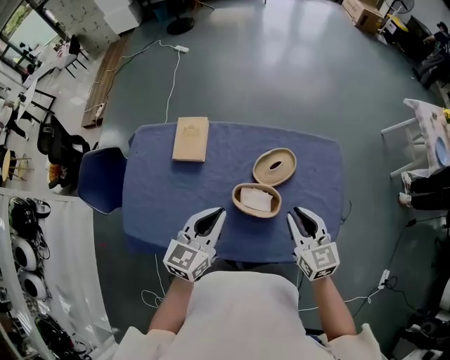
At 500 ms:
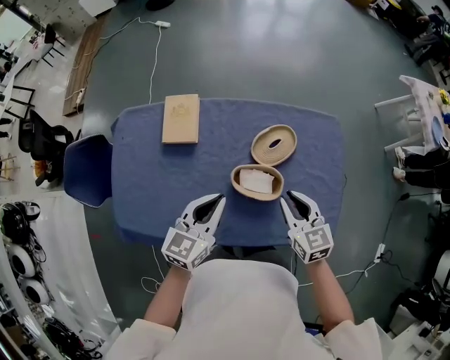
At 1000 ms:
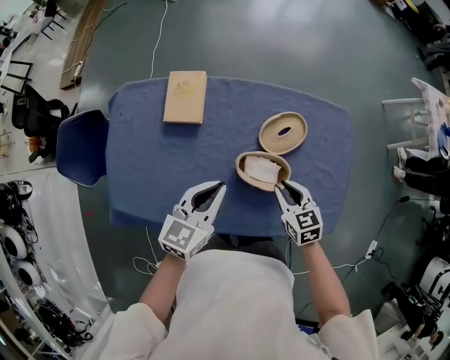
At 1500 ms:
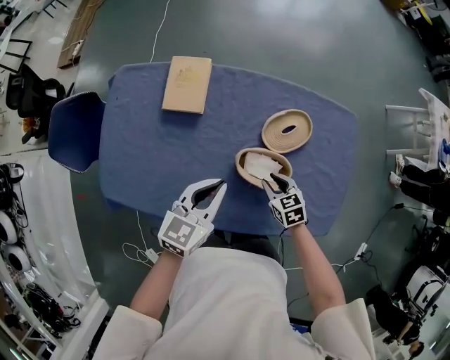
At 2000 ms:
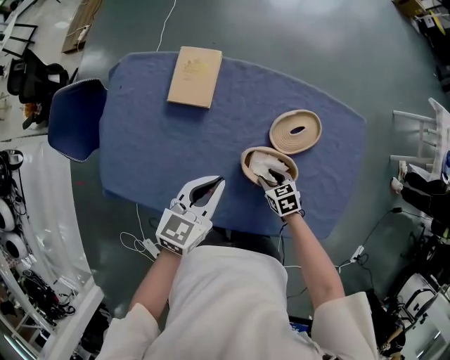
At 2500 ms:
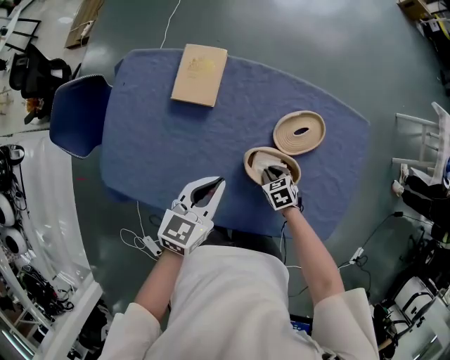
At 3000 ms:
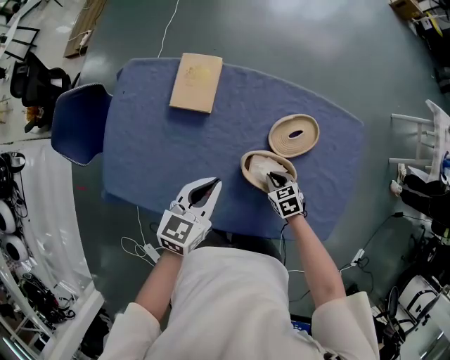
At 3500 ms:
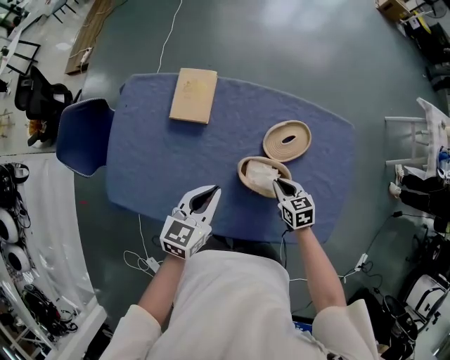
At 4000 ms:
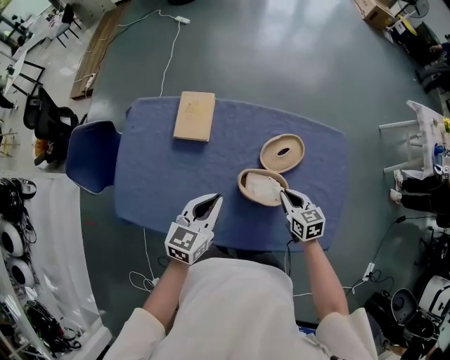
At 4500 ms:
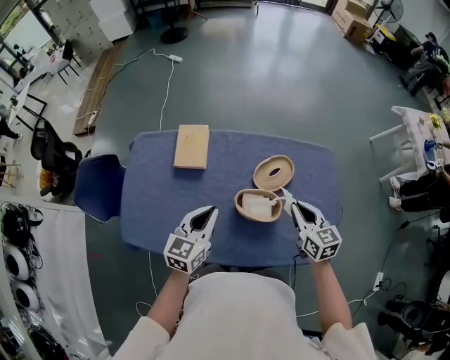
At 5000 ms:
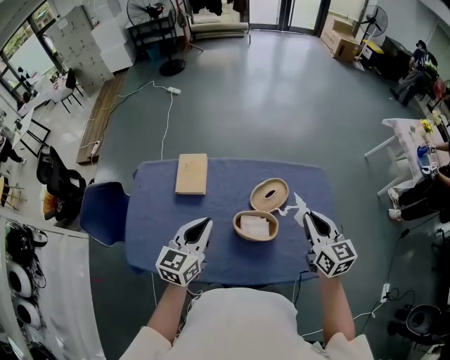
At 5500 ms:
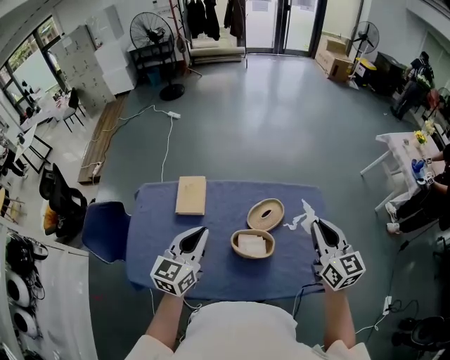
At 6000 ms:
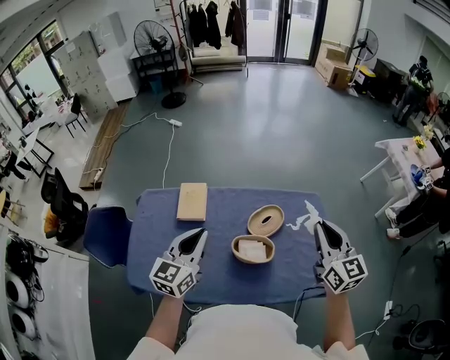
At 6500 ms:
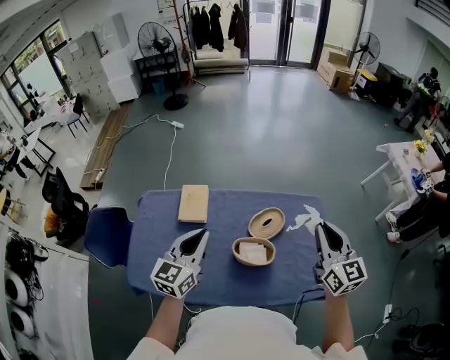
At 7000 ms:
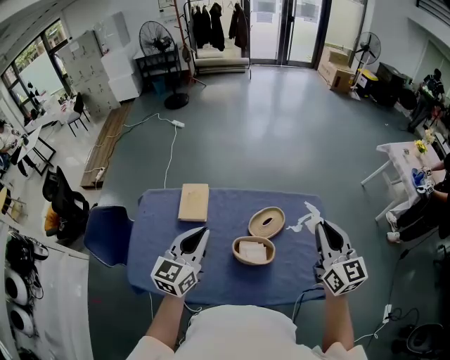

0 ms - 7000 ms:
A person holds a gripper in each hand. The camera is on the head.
0 ms - 2000 ms: The right gripper goes roughly 35 cm downward, and tips its fingers downward by approximately 40 degrees; the left gripper goes approximately 15 cm downward and to the left.
2000 ms - 3500 ms: The right gripper goes approximately 10 cm upward, and closes its fingers.
3500 ms - 5000 ms: The left gripper is displaced upward by approximately 15 cm; the right gripper moves upward, roughly 30 cm, and angles its fingers upward, by some 30 degrees.
5000 ms - 7000 ms: The right gripper heads upward, covering roughly 15 cm, while the left gripper goes some 10 cm upward.

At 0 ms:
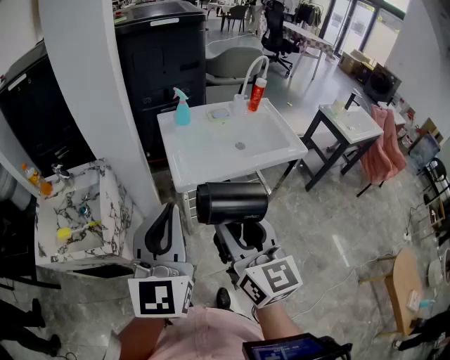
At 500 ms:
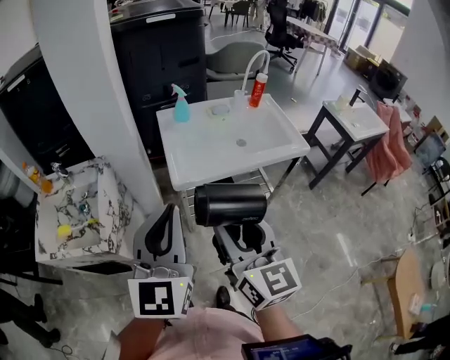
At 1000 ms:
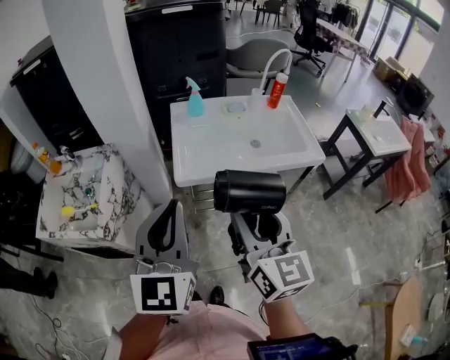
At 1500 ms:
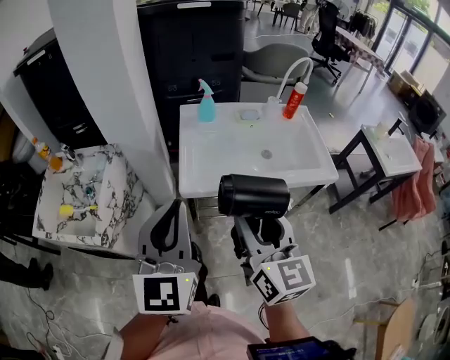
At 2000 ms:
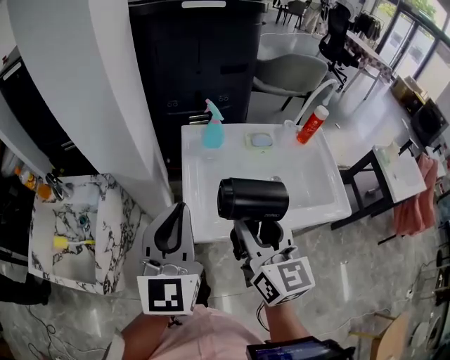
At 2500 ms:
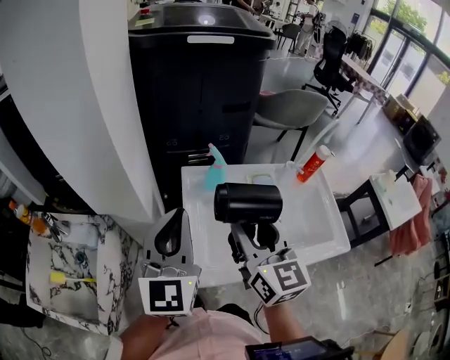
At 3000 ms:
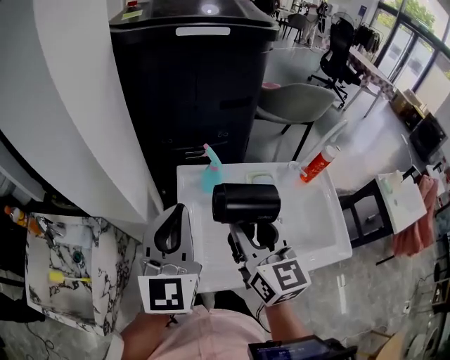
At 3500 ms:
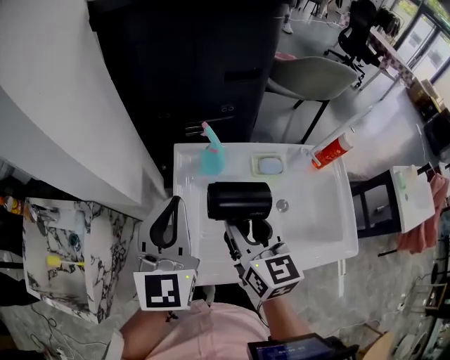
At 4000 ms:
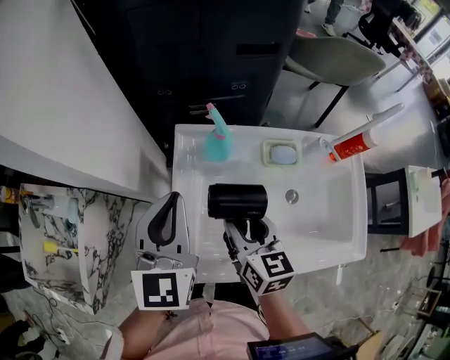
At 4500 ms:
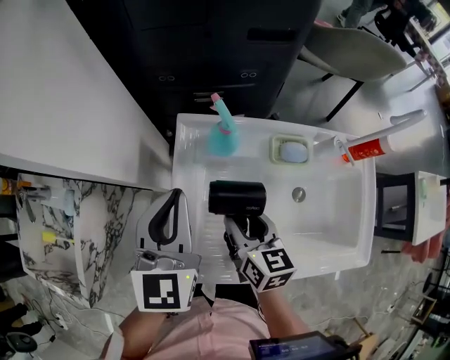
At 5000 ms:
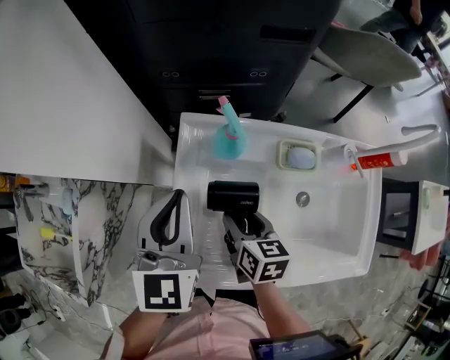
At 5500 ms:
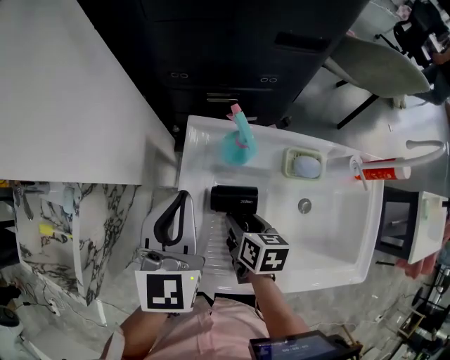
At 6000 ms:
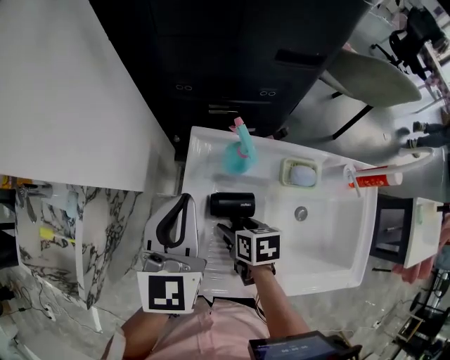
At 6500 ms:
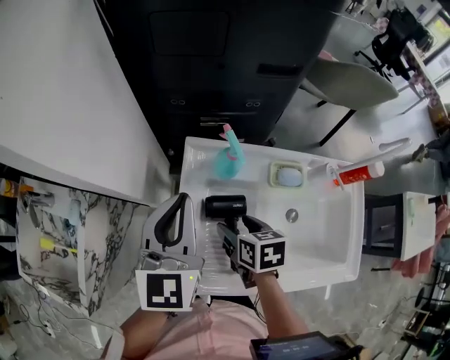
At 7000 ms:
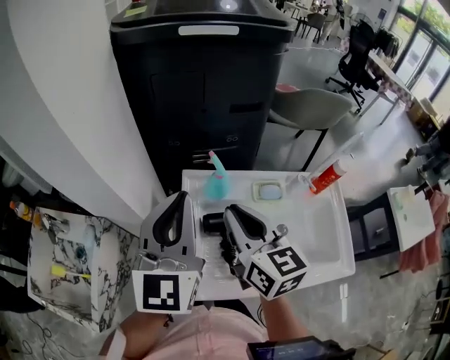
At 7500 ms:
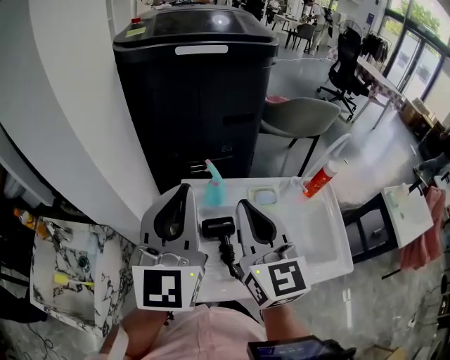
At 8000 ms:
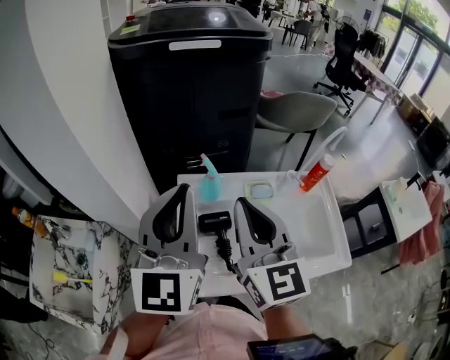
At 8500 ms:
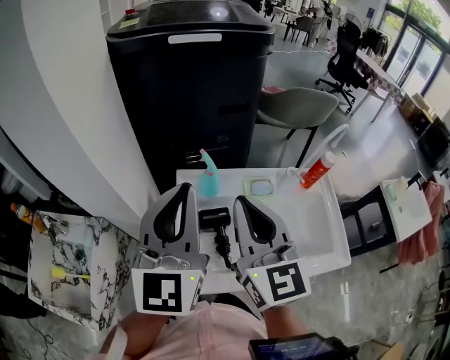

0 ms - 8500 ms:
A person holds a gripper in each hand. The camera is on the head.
0 ms - 2000 ms: The two grippers go roughly 25 cm forward.
2000 ms - 4000 ms: The two grippers go approximately 25 cm forward and downward. The right gripper swivels about 20 degrees.
4000 ms - 6500 ms: The right gripper goes about 5 cm downward, rotates about 30 degrees, and opens up.
6500 ms - 8500 ms: The right gripper moves upward, approximately 35 cm, points its fingers about 50 degrees further upward, and closes. Meanwhile the left gripper moves upward and backward, about 20 cm, and turns by approximately 20 degrees.

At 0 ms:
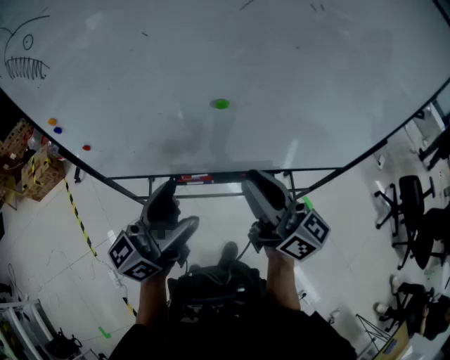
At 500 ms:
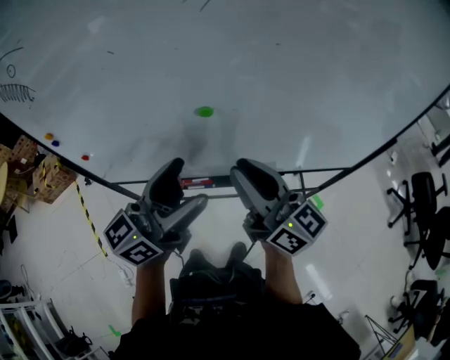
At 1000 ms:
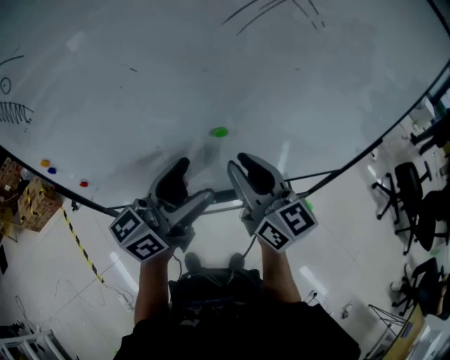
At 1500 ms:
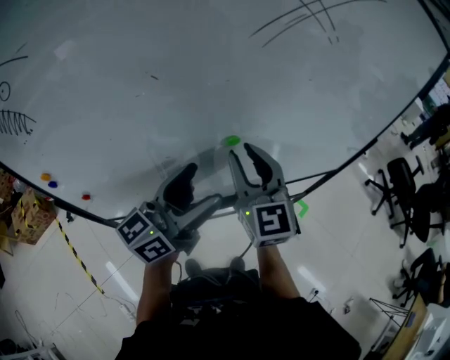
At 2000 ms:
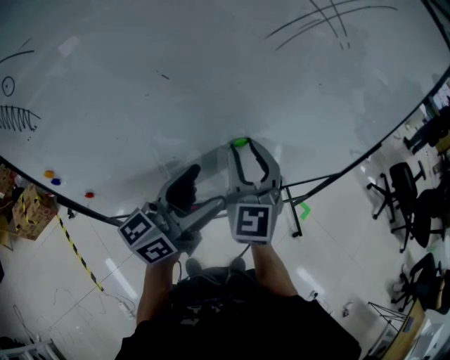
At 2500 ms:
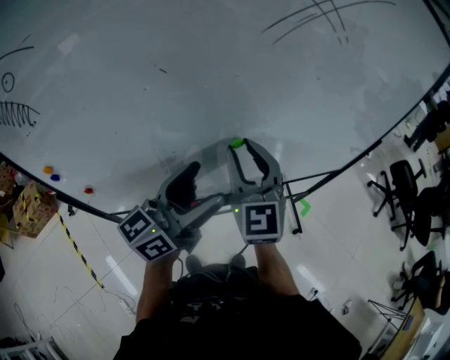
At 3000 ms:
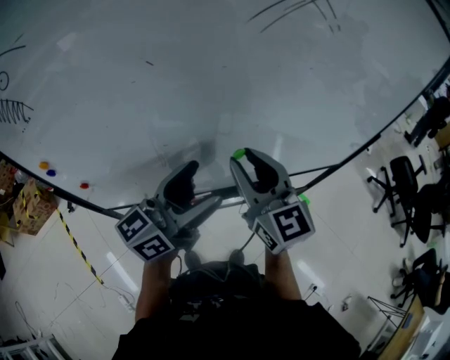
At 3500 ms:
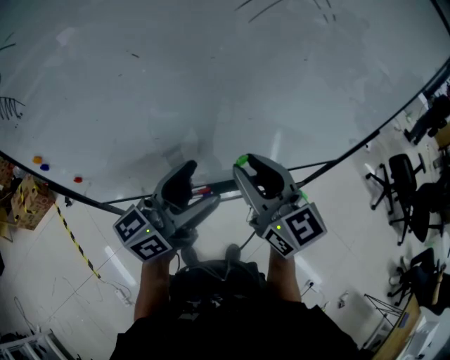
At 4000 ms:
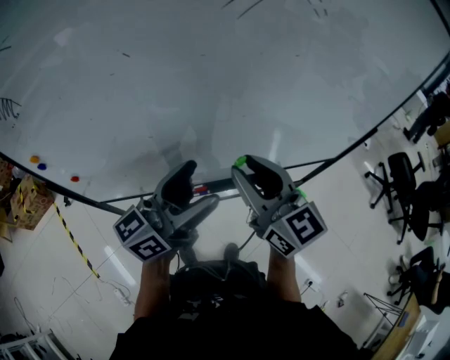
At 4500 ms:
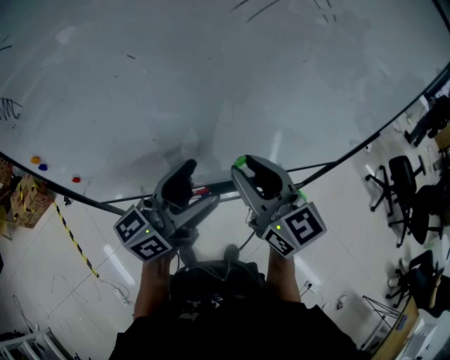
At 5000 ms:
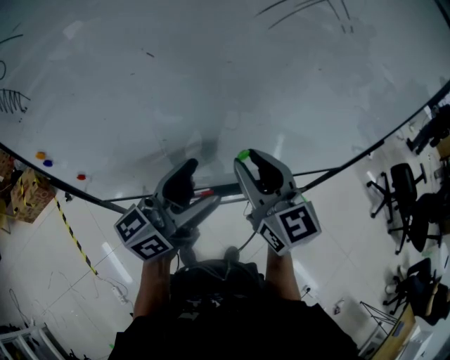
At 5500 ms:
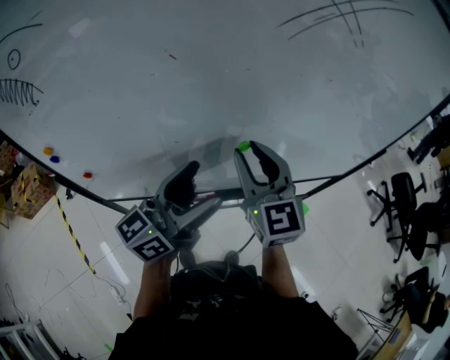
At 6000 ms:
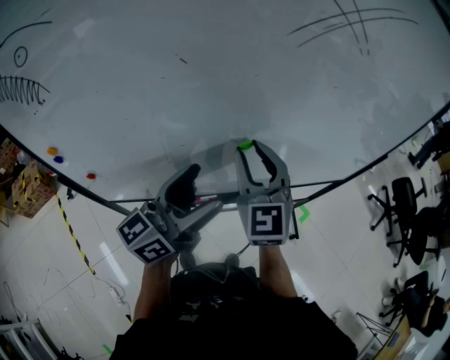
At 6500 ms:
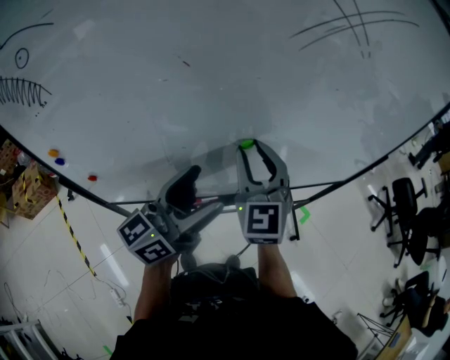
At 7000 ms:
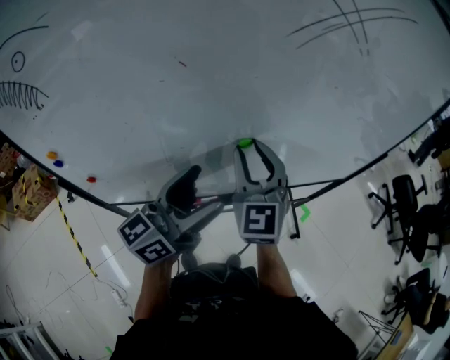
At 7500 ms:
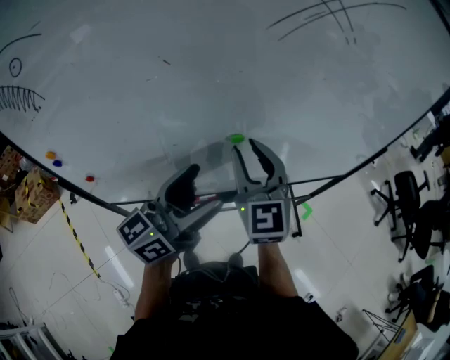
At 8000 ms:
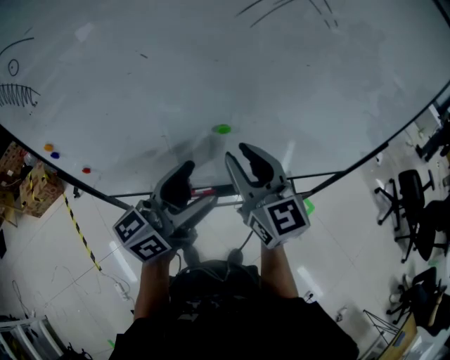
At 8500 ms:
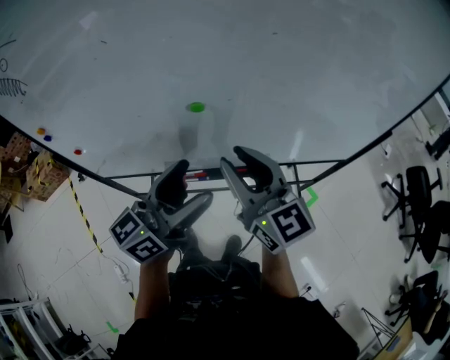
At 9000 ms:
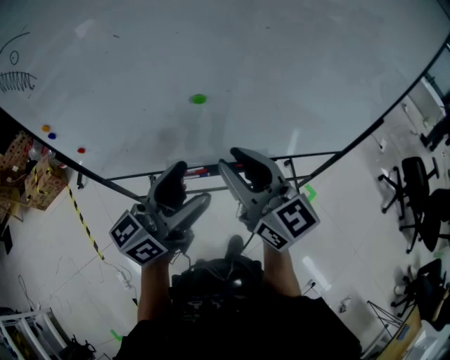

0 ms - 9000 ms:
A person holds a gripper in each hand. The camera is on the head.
0 ms - 2000 ms: The left gripper ends up roughly 10 cm from where it was. Meanwhile the right gripper shifts by roughly 15 cm, and changes its angle by some 70 degrees.
2000 ms - 4500 ms: The right gripper moves backward and to the right, some 10 cm, and turns by about 40 degrees.
4500 ms - 7000 ms: The right gripper is displaced forward and to the left by approximately 10 cm, and rotates roughly 30 degrees.
7000 ms - 9000 ms: The left gripper goes roughly 10 cm to the right and backward, while the right gripper goes roughly 15 cm backward and to the right, and rotates some 50 degrees.

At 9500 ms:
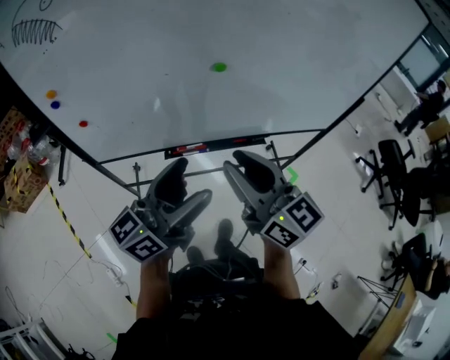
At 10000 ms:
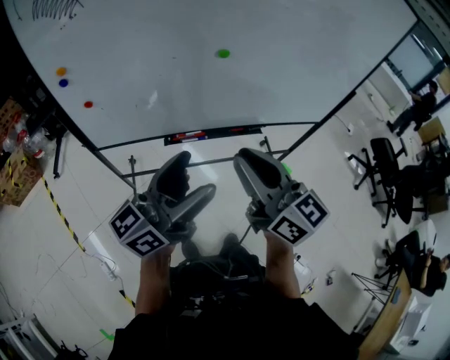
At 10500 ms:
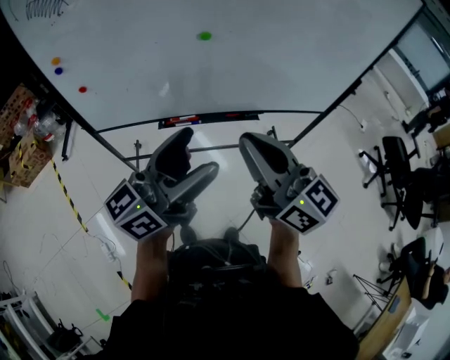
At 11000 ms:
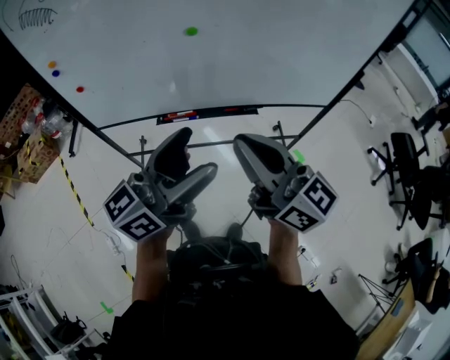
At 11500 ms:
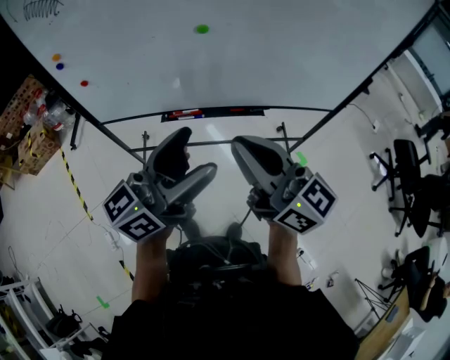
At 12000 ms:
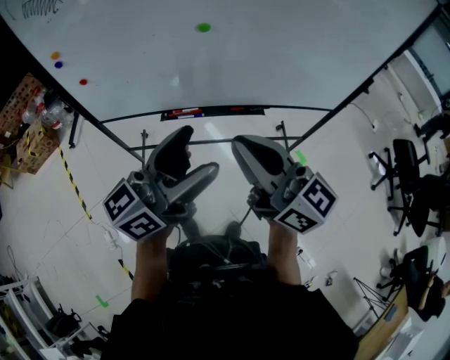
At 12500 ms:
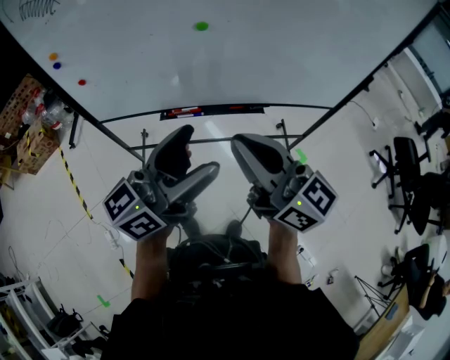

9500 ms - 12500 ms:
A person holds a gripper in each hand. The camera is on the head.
9500 ms - 11000 ms: Both grippers travel together to the right and backward, about 15 cm. The right gripper closes up.
11000 ms - 12500 ms: There are only small adjustments of the grippers.
